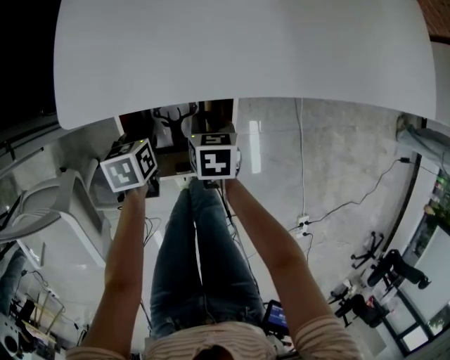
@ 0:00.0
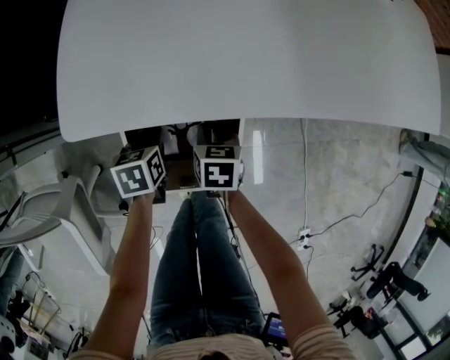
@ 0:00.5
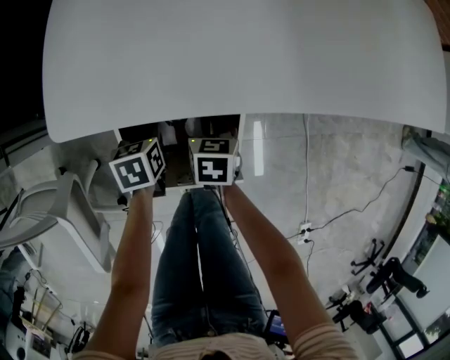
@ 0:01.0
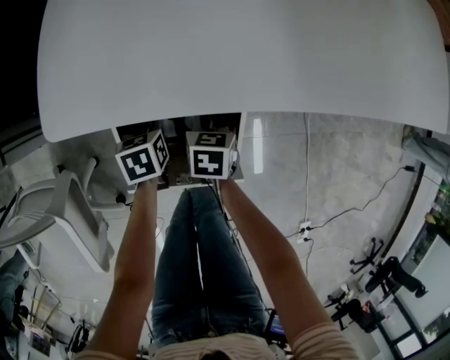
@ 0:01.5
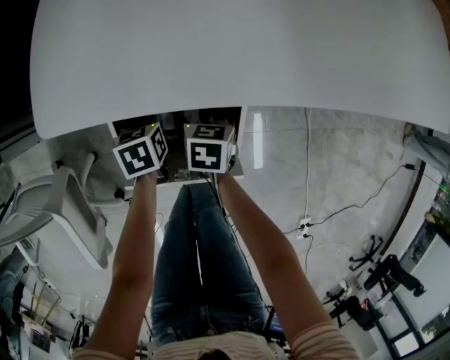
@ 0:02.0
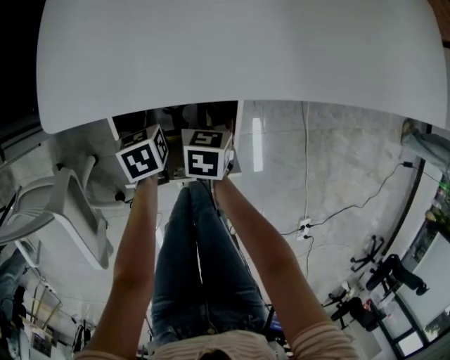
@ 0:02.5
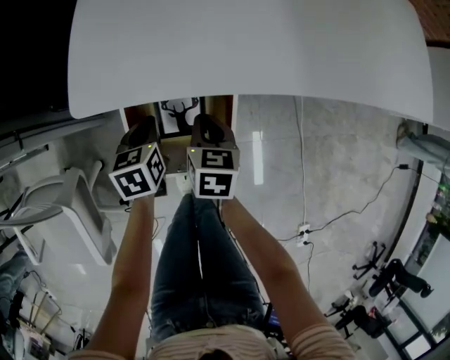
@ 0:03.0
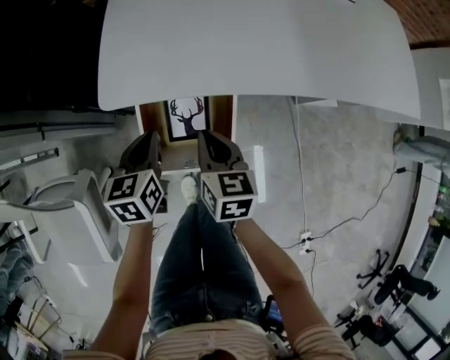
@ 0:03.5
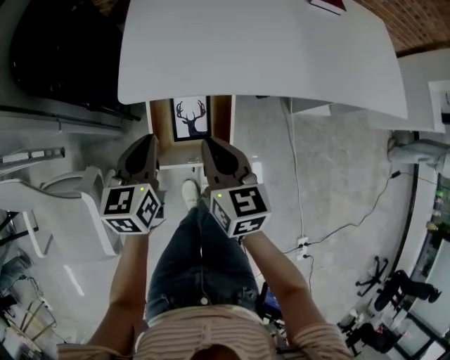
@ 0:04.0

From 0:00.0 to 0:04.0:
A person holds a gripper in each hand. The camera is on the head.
From 0:00.0 to 0:02.0: The two grippers go roughly 5 cm downward.
From 0:02.0 to 0:04.0: The grippers both shift upward by roughly 35 cm. The left gripper points its fingers roughly 30 degrees further upward. Meanwhile the right gripper angles its fingers upward, by about 30 degrees.

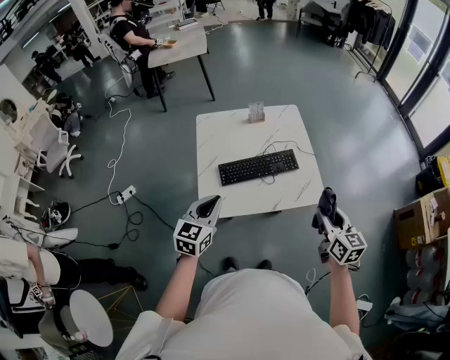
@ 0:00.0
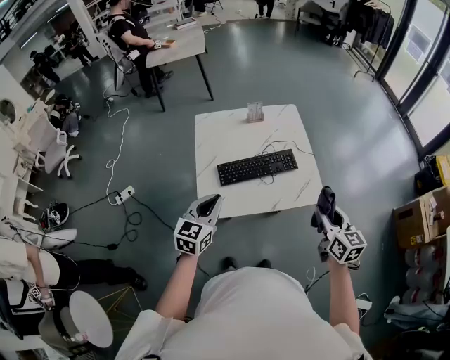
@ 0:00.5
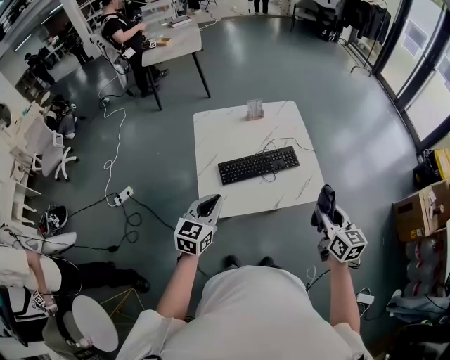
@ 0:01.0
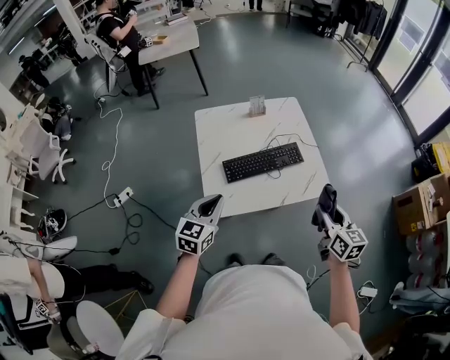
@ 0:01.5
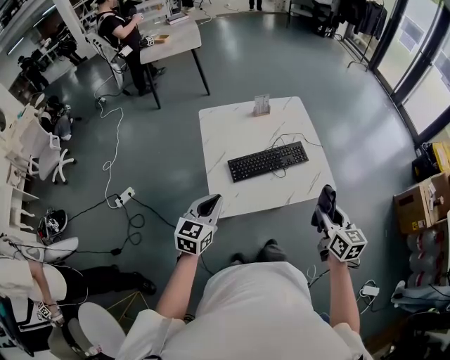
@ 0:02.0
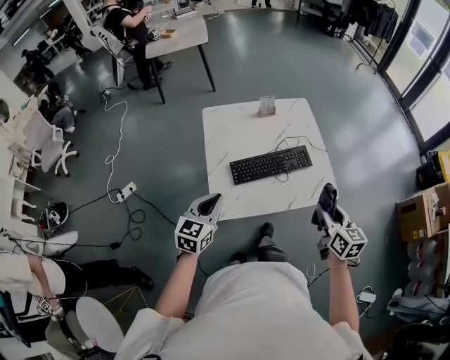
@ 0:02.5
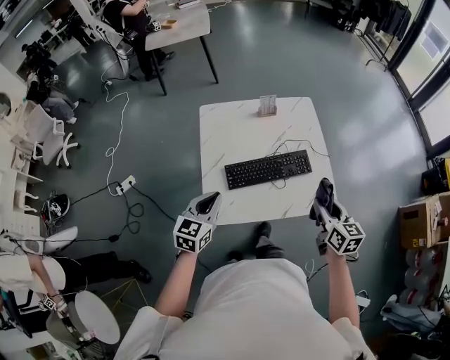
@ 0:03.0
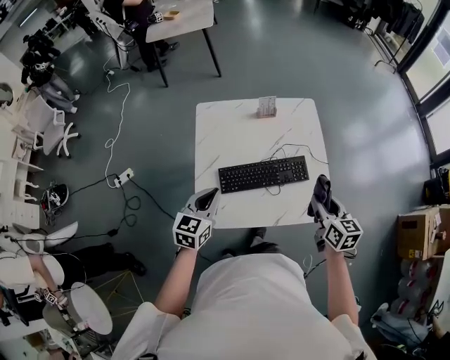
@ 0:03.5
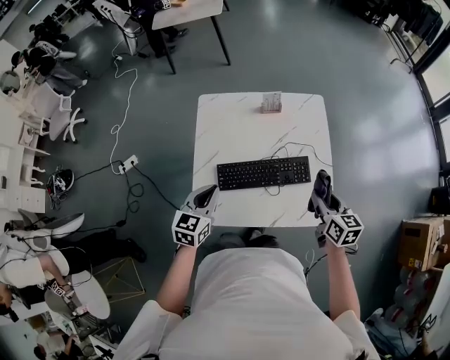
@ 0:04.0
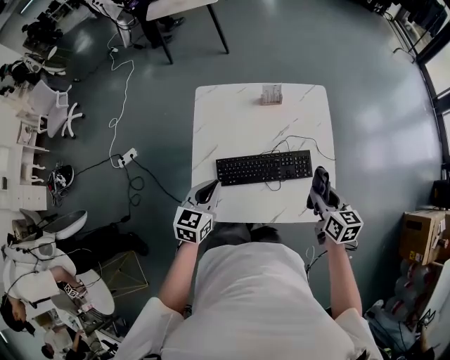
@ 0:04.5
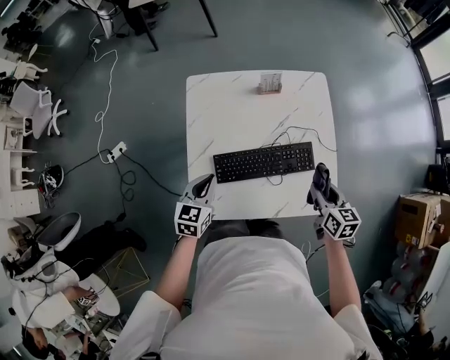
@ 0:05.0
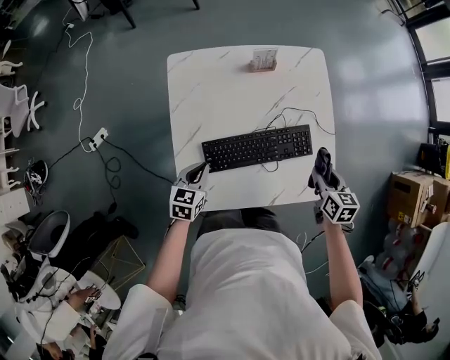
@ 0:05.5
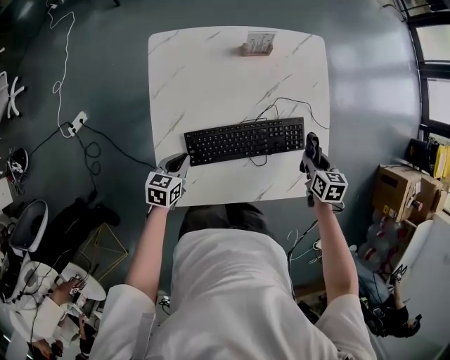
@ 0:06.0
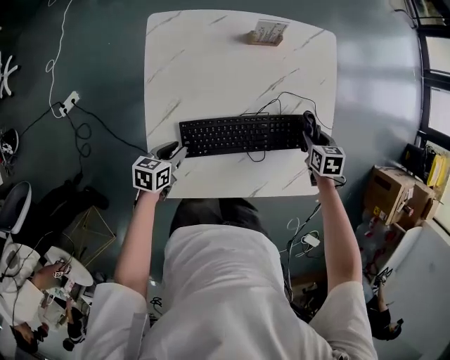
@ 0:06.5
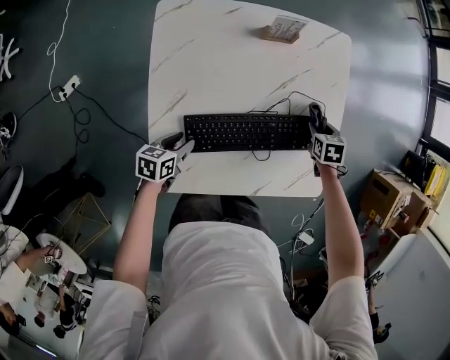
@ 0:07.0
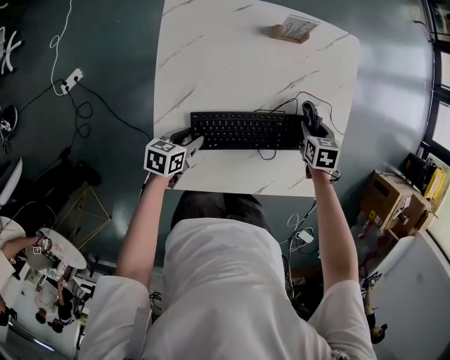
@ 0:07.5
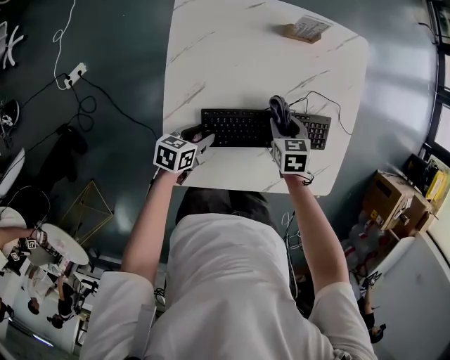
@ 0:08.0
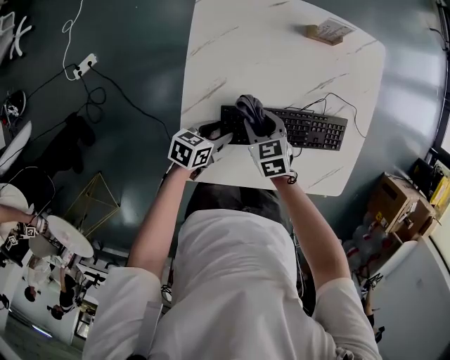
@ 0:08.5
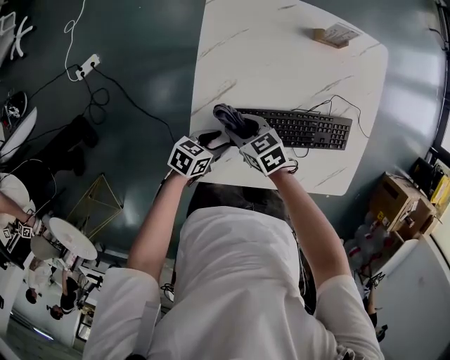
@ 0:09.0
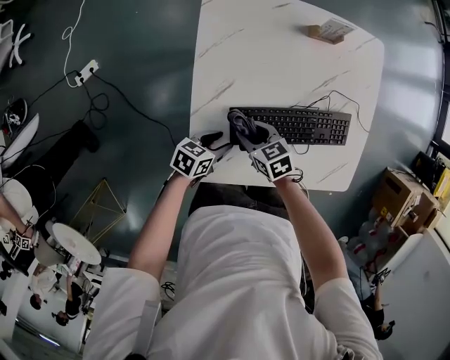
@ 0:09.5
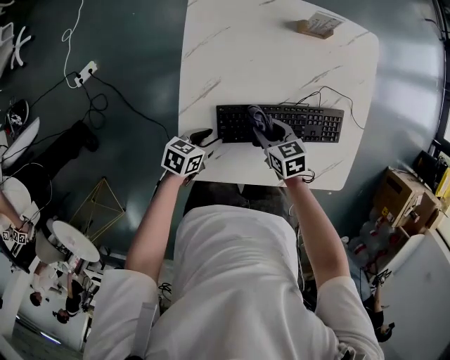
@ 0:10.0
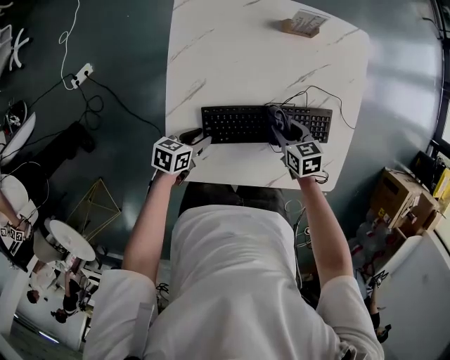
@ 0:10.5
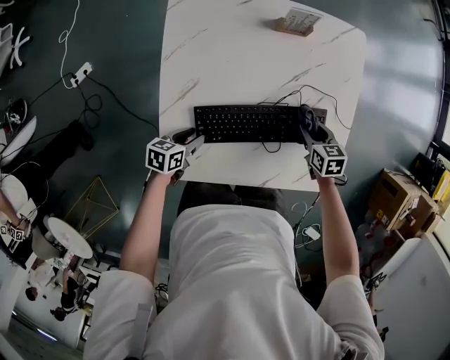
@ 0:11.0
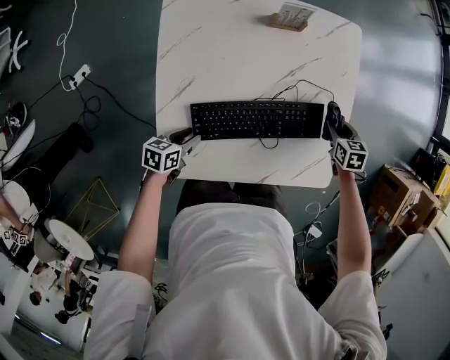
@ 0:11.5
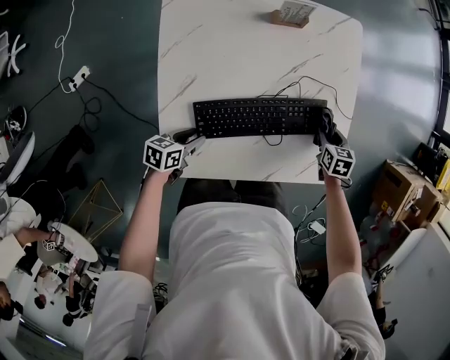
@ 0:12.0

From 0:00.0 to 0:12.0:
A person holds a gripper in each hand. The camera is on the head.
From 0:00.0 to 0:02.0: Both grippers travel together to the left, some 10 cm.
From 0:02.0 to 0:04.0: The left gripper travels forward and to the right by some 20 cm. Meanwhile the right gripper shifts about 25 cm forward.
From 0:04.0 to 0:06.0: The two grippers go about 20 cm downward. The right gripper turns by some 30 degrees; the left gripper swivels roughly 30 degrees.
From 0:06.0 to 0:08.0: The left gripper is displaced downward by approximately 5 cm, and opens. The right gripper is displaced to the left by about 20 cm.
From 0:08.0 to 0:10.0: The right gripper turns by roughly 20 degrees.
From 0:10.0 to 0:12.0: The right gripper is displaced to the right by about 30 cm, and changes its angle by approximately 30 degrees.

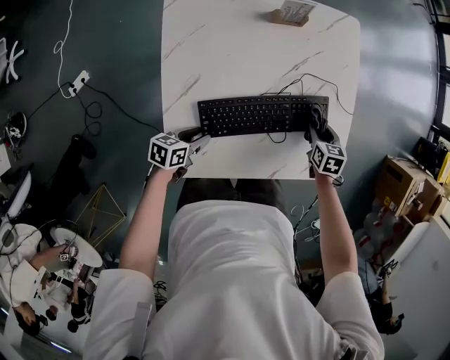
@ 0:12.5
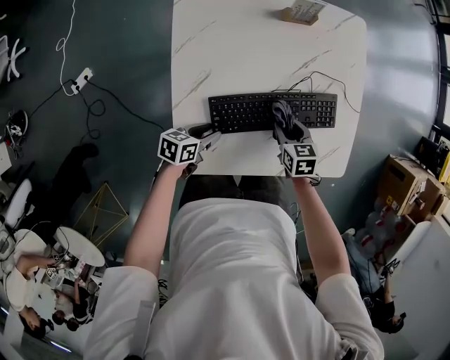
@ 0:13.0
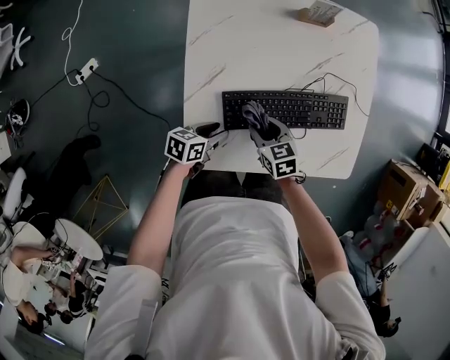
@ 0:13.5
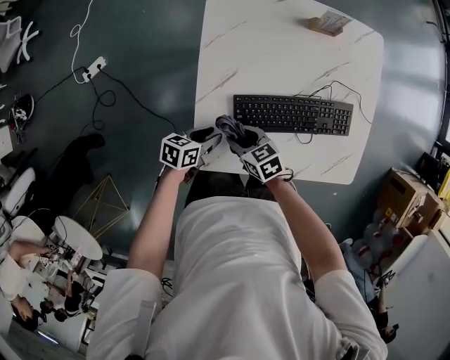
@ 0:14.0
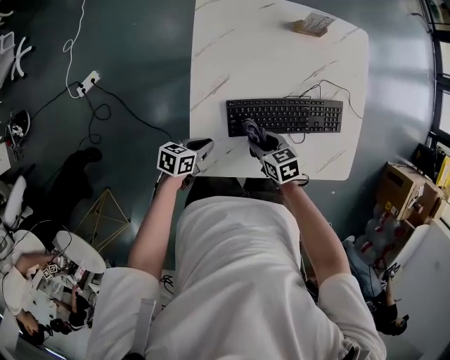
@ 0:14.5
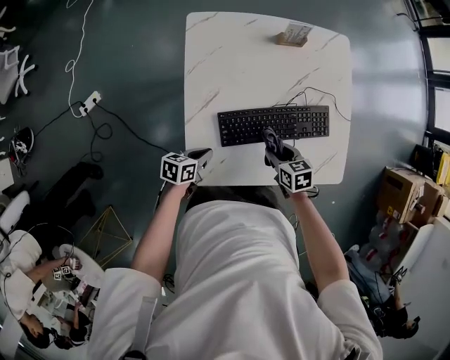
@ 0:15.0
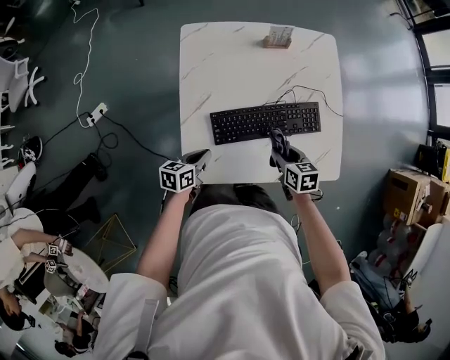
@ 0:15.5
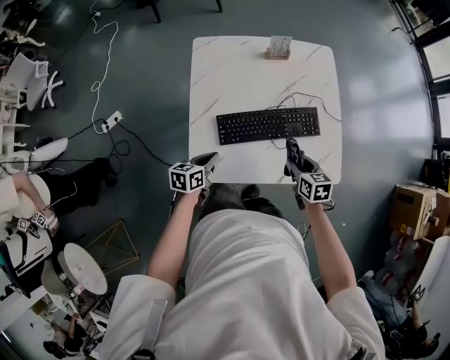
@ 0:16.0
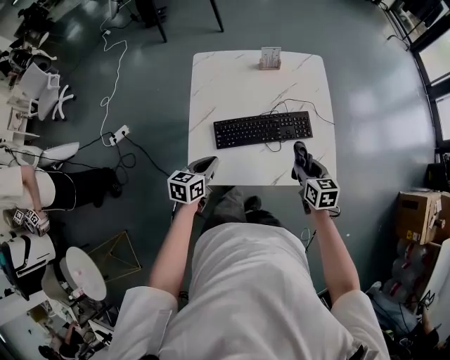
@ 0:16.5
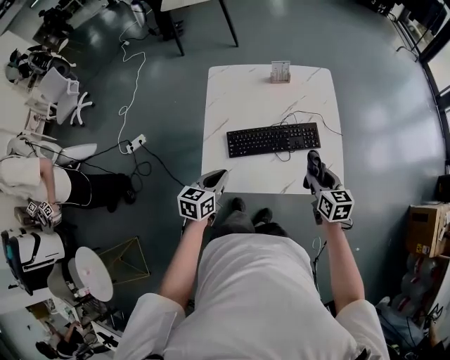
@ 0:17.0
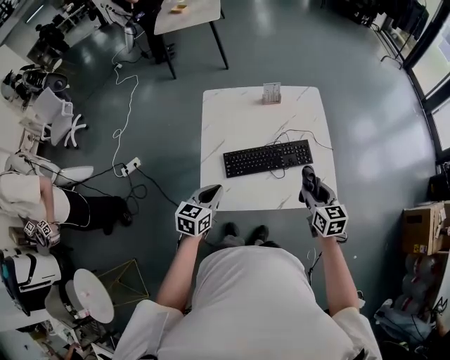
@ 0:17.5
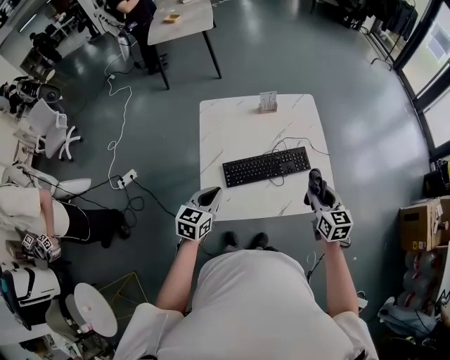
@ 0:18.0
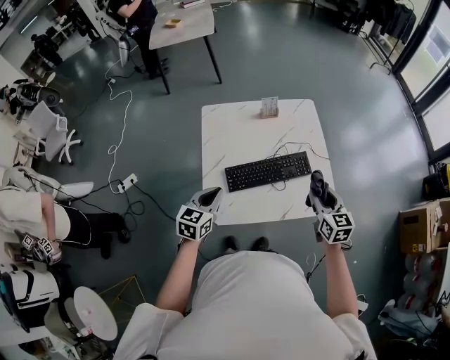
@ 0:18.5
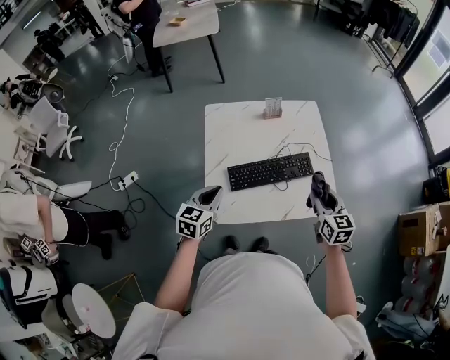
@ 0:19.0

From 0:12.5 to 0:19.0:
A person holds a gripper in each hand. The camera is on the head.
From 0:12.5 to 0:14.5: The right gripper moves roughly 30 cm, and swivels roughly 30 degrees, while the left gripper changes place by about 5 cm, and closes its fingers.
From 0:14.5 to 0:17.0: The left gripper is displaced upward by approximately 20 cm, and turns by some 40 degrees; the right gripper ends up some 35 cm from where it was, and rotates roughly 30 degrees.
From 0:17.0 to 0:19.0: The right gripper goes approximately 10 cm upward, while the left gripper goes some 10 cm upward and to the left.

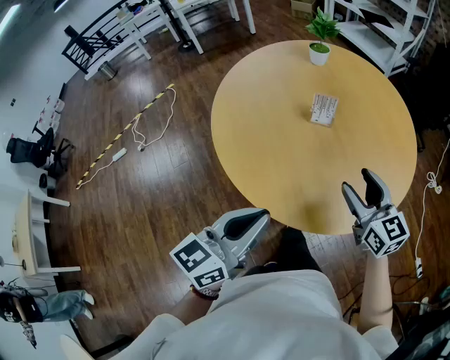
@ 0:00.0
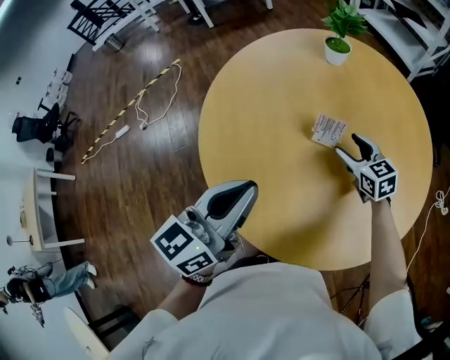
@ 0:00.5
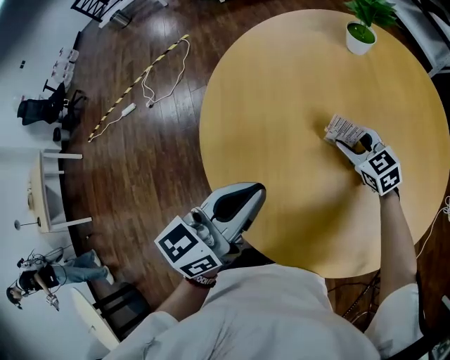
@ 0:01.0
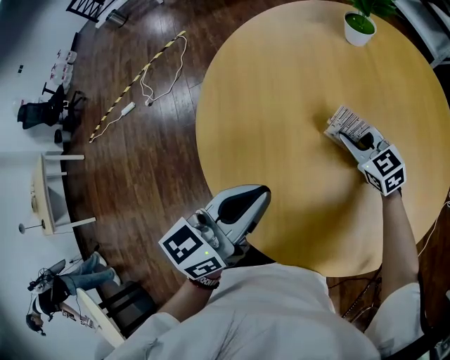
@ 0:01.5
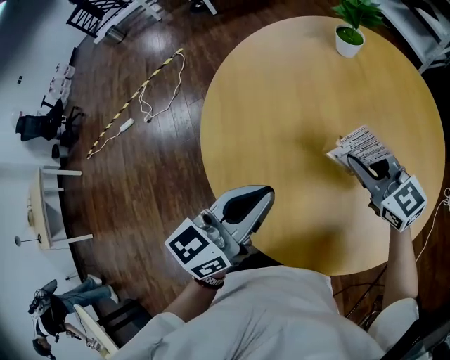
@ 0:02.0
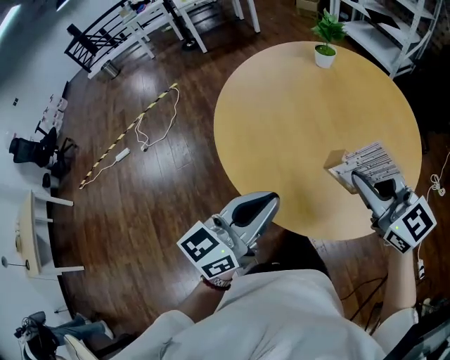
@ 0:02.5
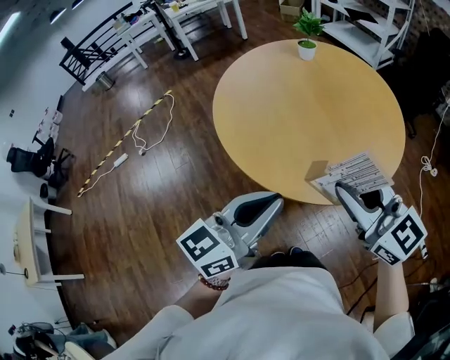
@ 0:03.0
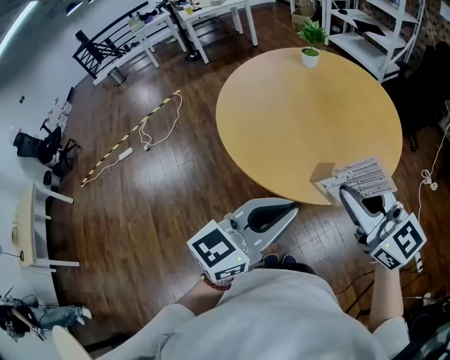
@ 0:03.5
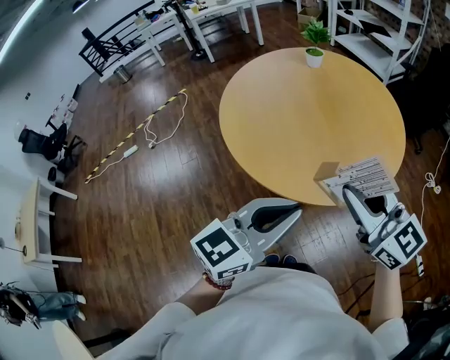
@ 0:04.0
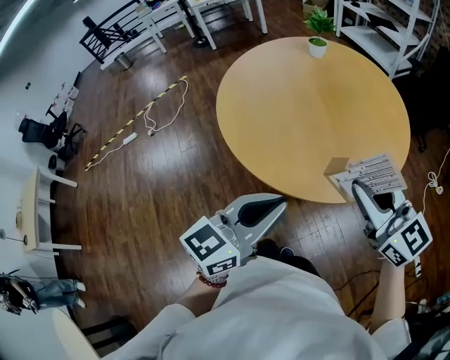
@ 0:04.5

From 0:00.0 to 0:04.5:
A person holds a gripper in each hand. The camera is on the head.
From 0:00.0 to 0:02.0: The grippers both shift forward by about 25 cm. The right gripper turns by roughly 30 degrees, and closes.
From 0:02.0 to 0:04.5: Both grippers travel together backward, about 40 cm.
